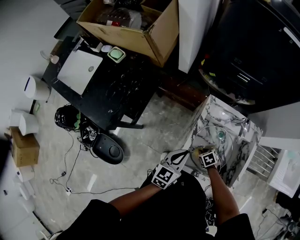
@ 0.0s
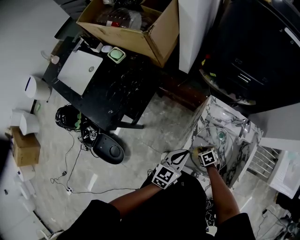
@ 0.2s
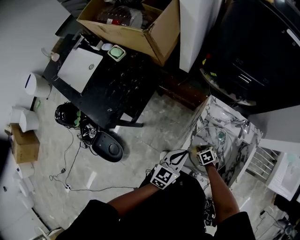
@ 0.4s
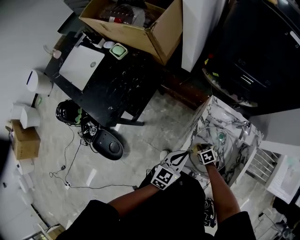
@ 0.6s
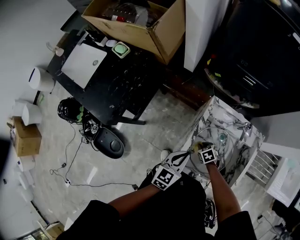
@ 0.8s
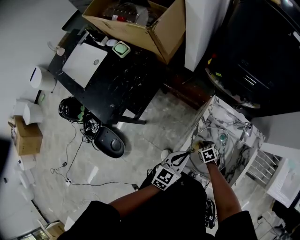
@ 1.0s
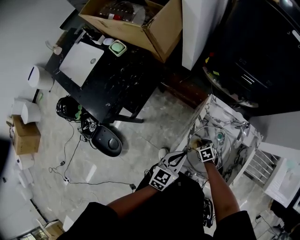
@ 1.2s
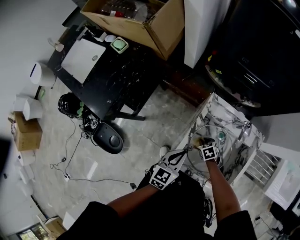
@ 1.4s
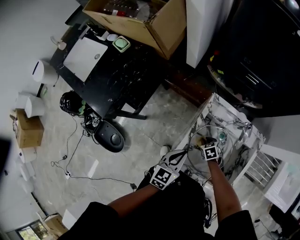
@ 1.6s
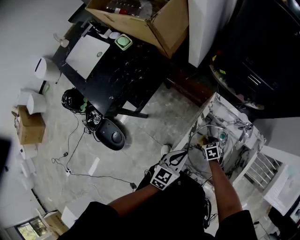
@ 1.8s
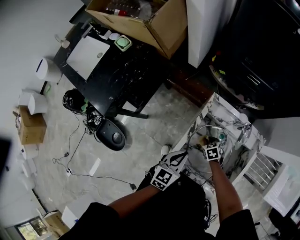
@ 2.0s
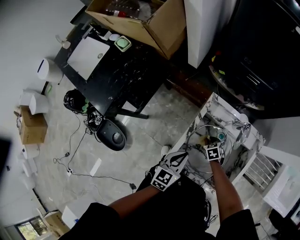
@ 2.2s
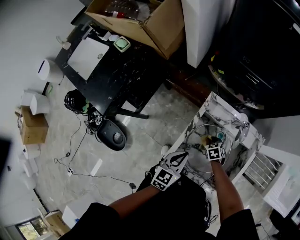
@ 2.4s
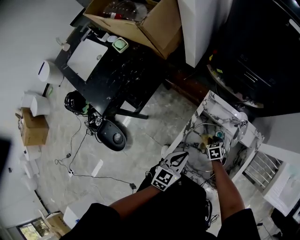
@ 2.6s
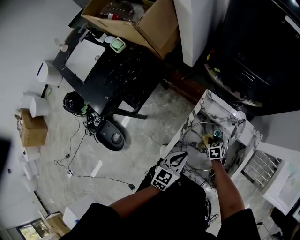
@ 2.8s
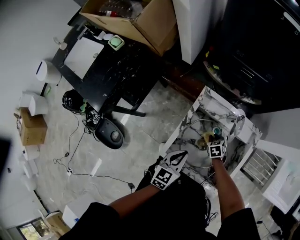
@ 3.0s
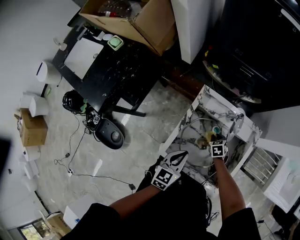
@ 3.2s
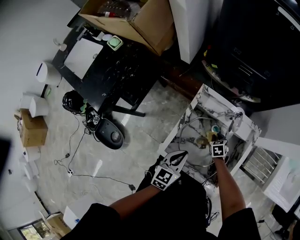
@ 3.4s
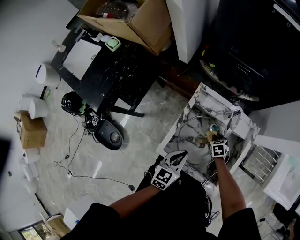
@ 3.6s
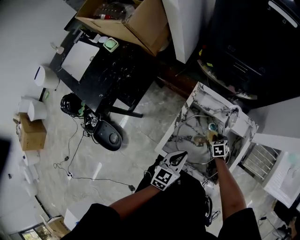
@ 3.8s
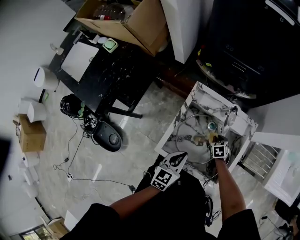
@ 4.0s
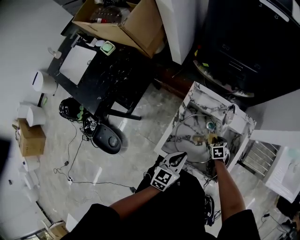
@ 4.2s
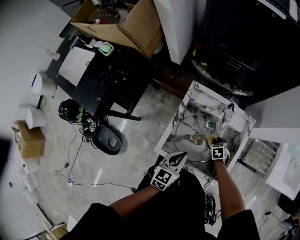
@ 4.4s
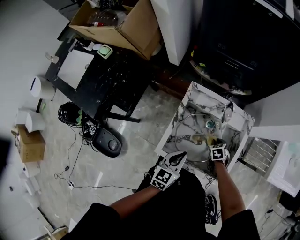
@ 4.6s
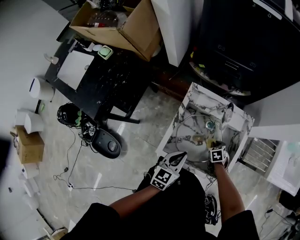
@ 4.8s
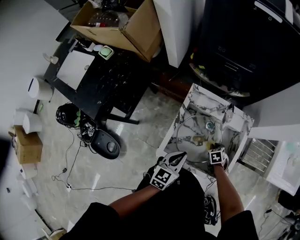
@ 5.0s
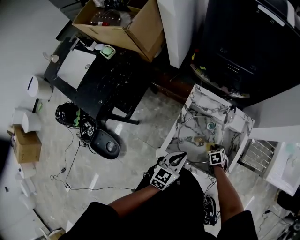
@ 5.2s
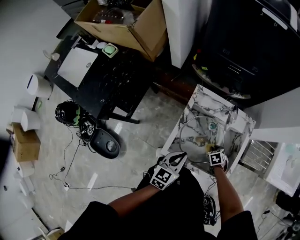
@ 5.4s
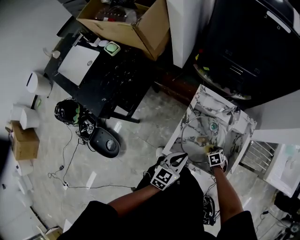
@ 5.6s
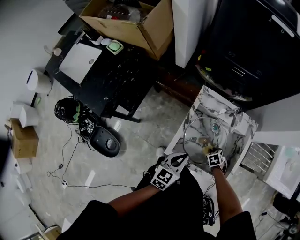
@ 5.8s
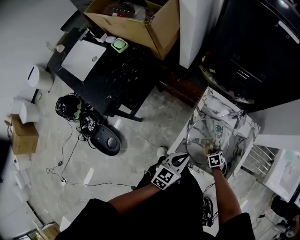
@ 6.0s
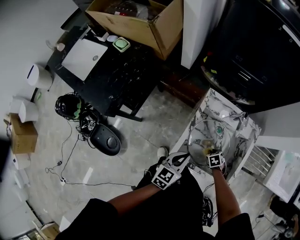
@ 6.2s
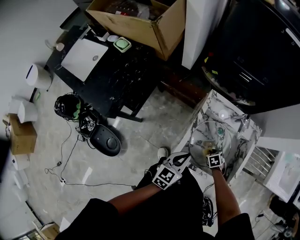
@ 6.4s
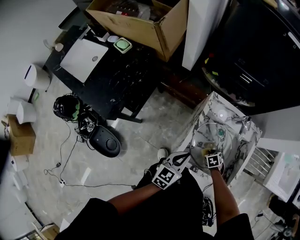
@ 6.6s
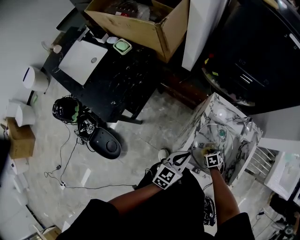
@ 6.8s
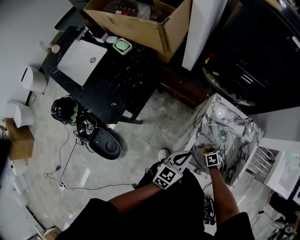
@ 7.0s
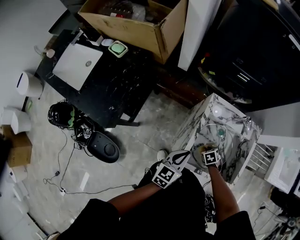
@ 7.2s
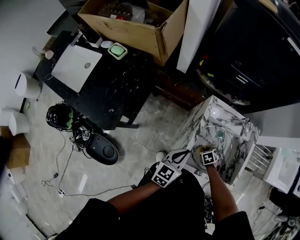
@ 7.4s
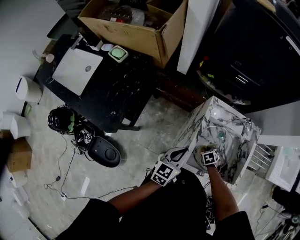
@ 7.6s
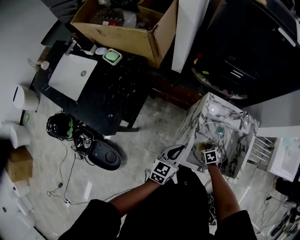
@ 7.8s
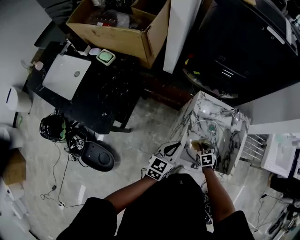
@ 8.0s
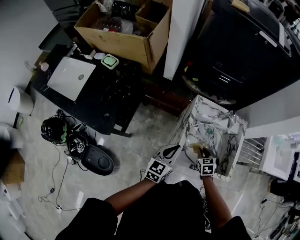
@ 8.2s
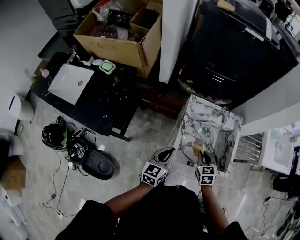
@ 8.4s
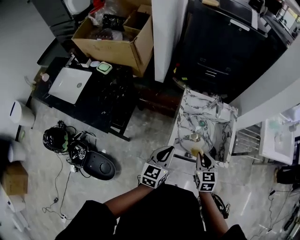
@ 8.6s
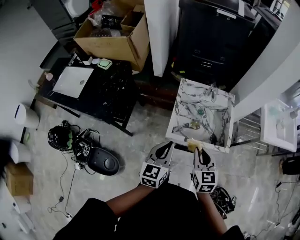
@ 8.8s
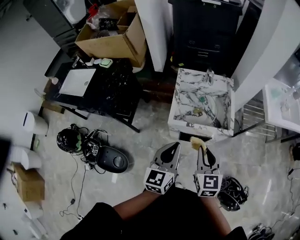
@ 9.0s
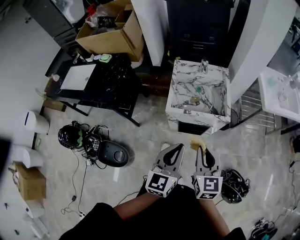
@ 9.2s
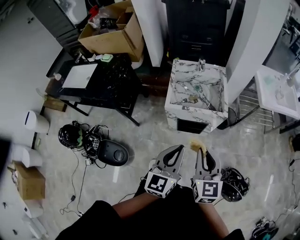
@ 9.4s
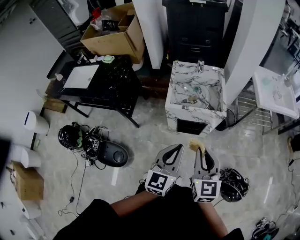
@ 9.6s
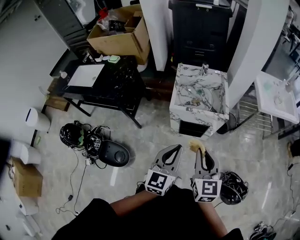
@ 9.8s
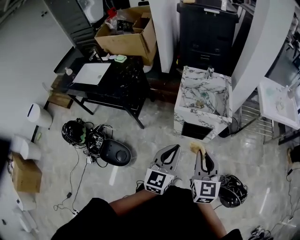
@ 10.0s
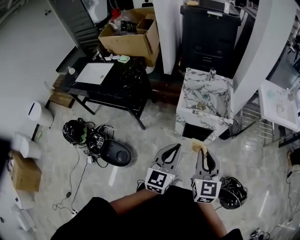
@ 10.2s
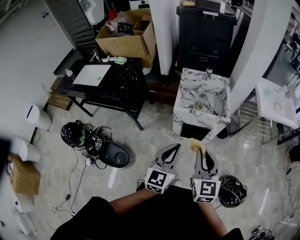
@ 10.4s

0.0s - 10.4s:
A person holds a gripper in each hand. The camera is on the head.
0.0s - 1.4s: The right gripper is displaced forward by approximately 5 cm.
1.4s - 3.0s: The right gripper heads to the right, covering some 10 cm; the left gripper shifts about 5 cm to the right.
3.0s - 4.4s: The right gripper shifts about 10 cm to the right.
4.4s - 6.0s: The left gripper moves about 5 cm; the right gripper ends up some 10 cm from where it was.
6.0s - 7.4s: The right gripper moves roughly 10 cm. Meanwhile the left gripper shifts by about 10 cm.
7.4s - 9.0s: The left gripper changes place by about 30 cm. The right gripper goes some 40 cm upward, and angles its fingers upward, by about 60 degrees.
9.0s - 10.4s: The left gripper shifts about 20 cm backward. Meanwhile the right gripper goes some 20 cm backward and upward.

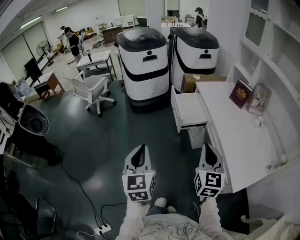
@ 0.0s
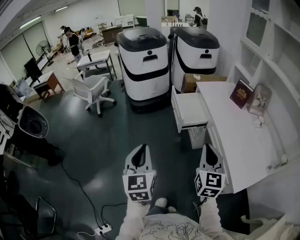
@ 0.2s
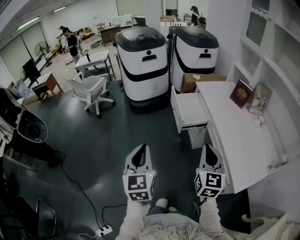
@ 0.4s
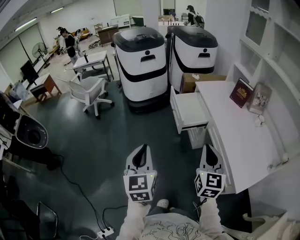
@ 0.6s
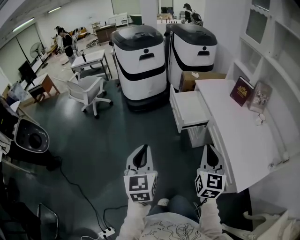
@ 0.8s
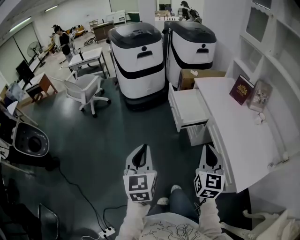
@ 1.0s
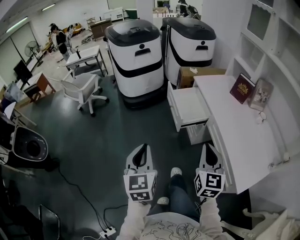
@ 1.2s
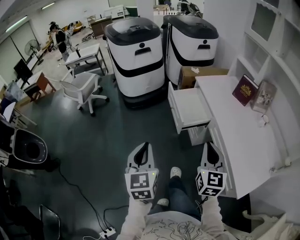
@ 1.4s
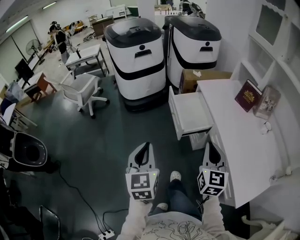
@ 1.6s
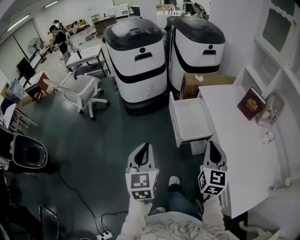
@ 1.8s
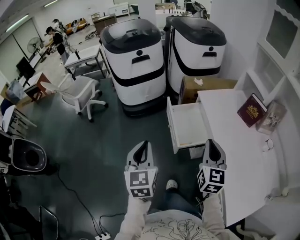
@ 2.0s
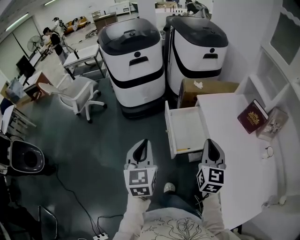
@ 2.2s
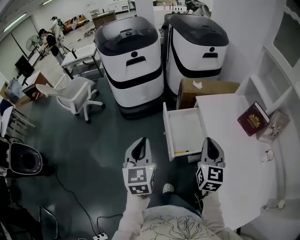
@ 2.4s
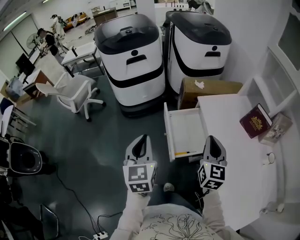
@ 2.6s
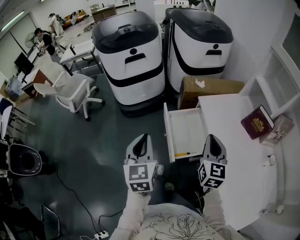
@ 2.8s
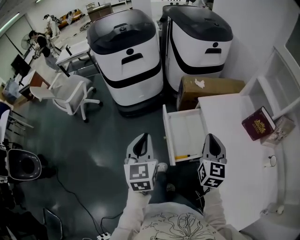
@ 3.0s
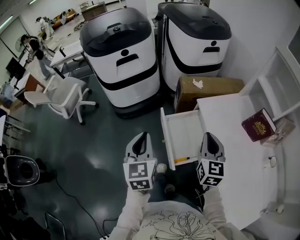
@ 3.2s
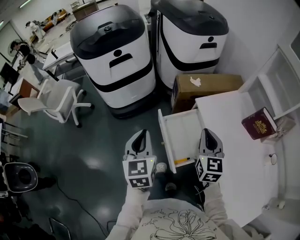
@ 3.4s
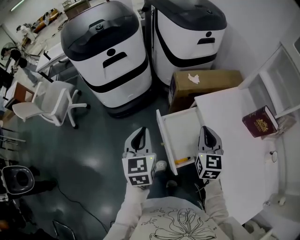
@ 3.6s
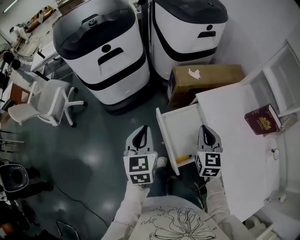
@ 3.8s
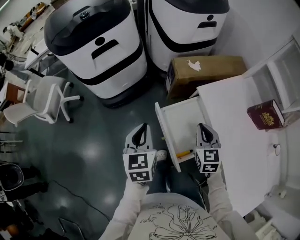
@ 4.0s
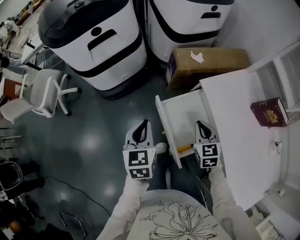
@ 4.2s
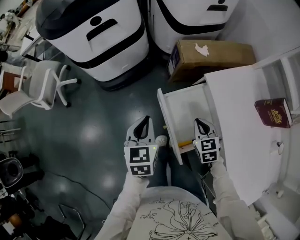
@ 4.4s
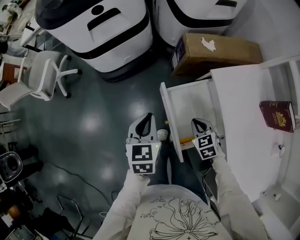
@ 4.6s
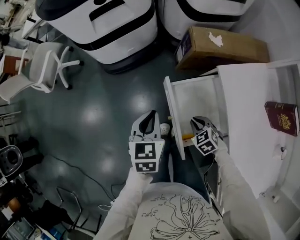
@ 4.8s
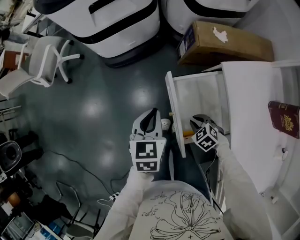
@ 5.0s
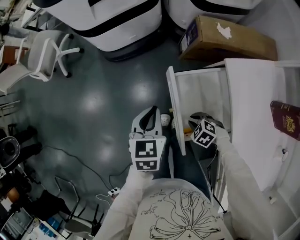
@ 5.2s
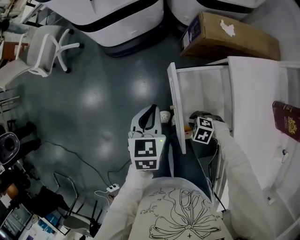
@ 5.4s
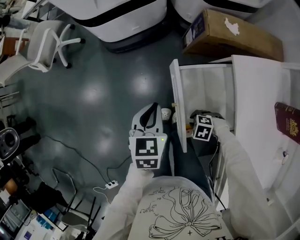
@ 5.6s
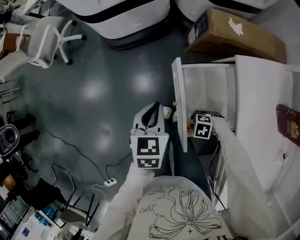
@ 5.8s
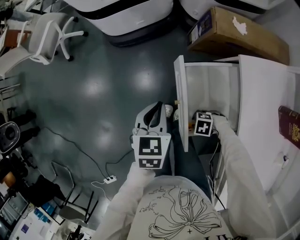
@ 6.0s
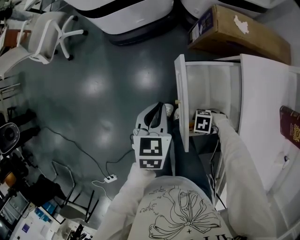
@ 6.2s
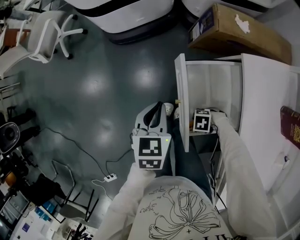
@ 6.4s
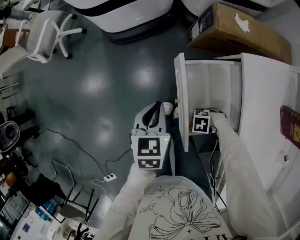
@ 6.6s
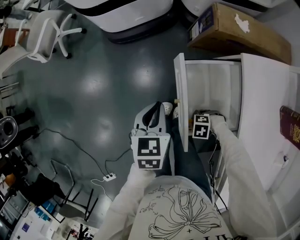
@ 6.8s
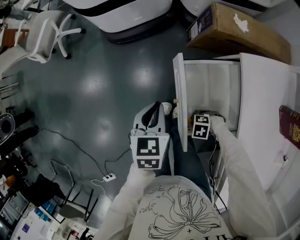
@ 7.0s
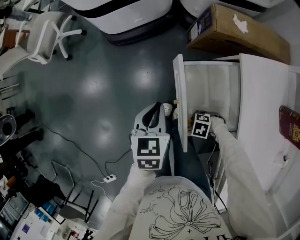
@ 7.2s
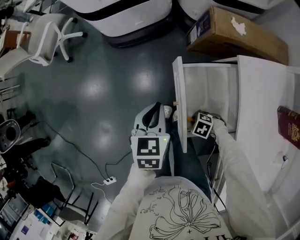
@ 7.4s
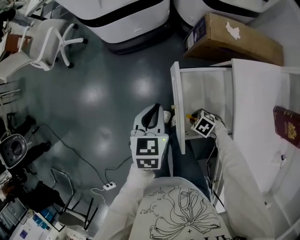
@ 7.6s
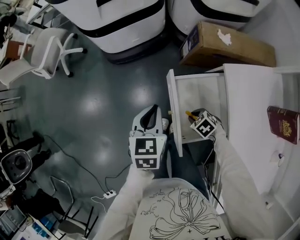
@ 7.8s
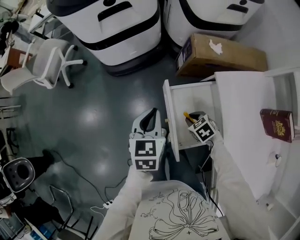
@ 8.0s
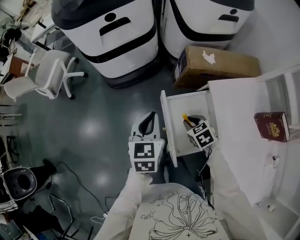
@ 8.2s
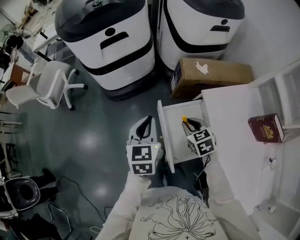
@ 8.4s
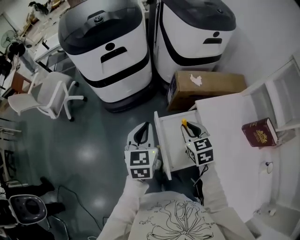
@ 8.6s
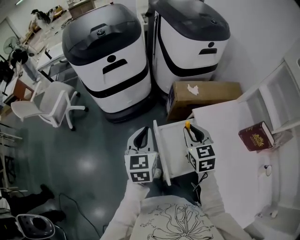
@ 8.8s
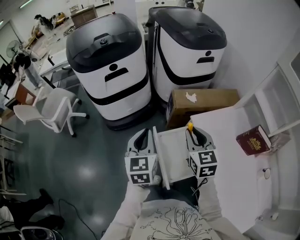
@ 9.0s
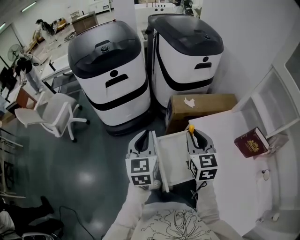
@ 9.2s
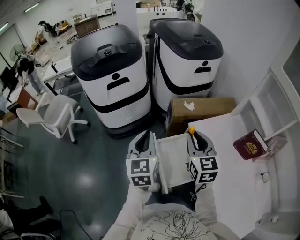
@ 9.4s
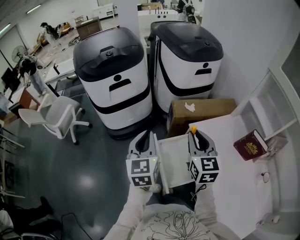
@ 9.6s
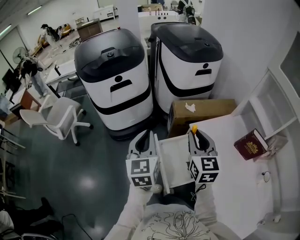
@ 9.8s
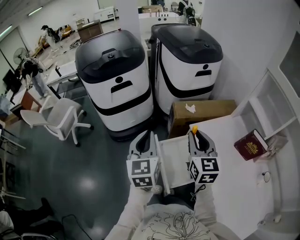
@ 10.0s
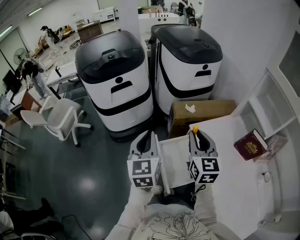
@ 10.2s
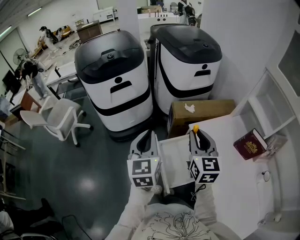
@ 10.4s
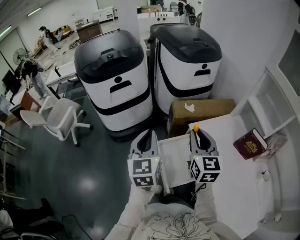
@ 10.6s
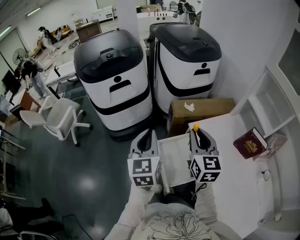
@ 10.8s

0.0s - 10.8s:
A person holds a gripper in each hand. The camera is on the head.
0.0s - 1.6s: Both grippers move forward, some 15 cm.
1.6s - 3.0s: Both grippers travel together forward, approximately 30 cm.
3.0s - 4.6s: The left gripper is displaced downward and forward by approximately 25 cm, and rotates approximately 20 degrees. Meanwhile the right gripper goes some 30 cm downward, and tilts its fingers roughly 40 degrees downward.
4.6s - 6.2s: The right gripper shifts roughly 15 cm downward, rotates some 80 degrees, and opens; the left gripper goes approximately 5 cm downward.
6.2s - 7.8s: The right gripper moves about 15 cm, and changes its angle by approximately 40 degrees. Meanwhile the left gripper goes roughly 5 cm upward.
7.8s - 9.2s: The right gripper goes some 40 cm upward, and points its fingers some 50 degrees further upward. The left gripper shifts some 20 cm upward, and changes its angle by about 20 degrees.
9.2s - 10.8s: The left gripper shifts by about 5 cm; the right gripper moves upward, approximately 5 cm.

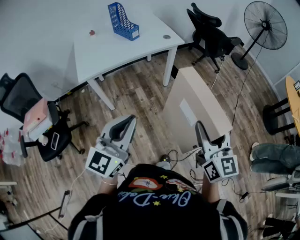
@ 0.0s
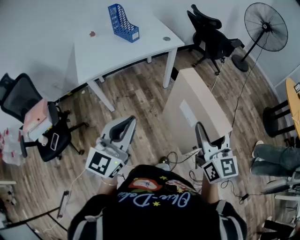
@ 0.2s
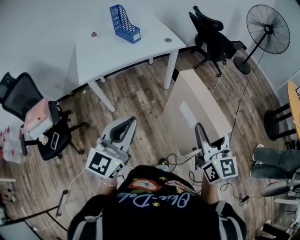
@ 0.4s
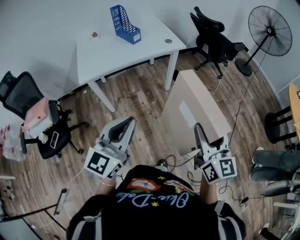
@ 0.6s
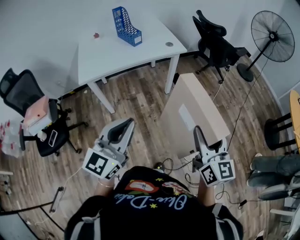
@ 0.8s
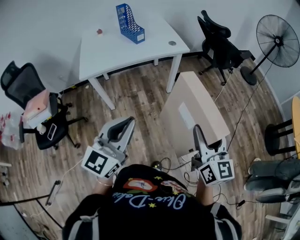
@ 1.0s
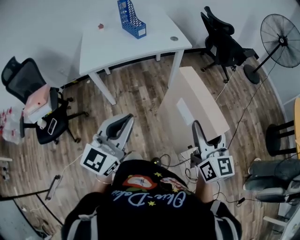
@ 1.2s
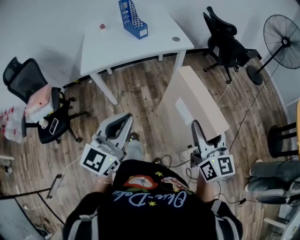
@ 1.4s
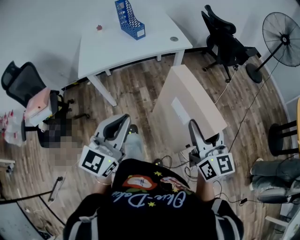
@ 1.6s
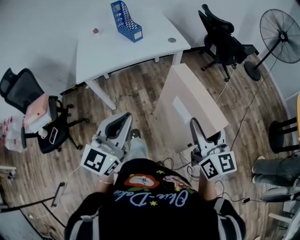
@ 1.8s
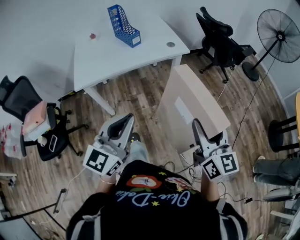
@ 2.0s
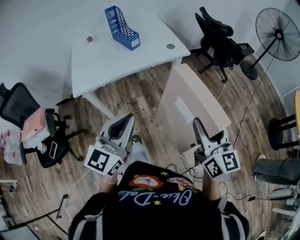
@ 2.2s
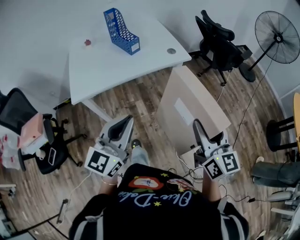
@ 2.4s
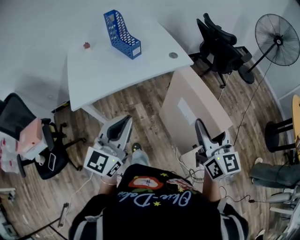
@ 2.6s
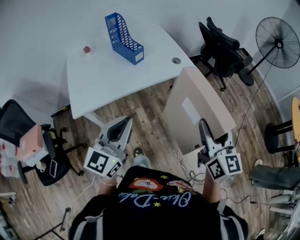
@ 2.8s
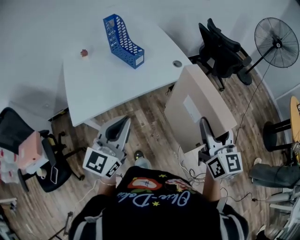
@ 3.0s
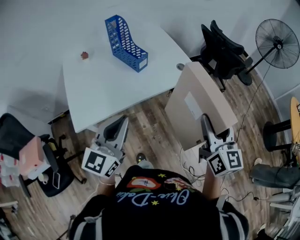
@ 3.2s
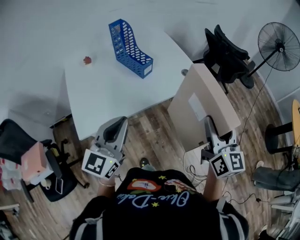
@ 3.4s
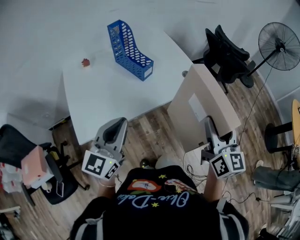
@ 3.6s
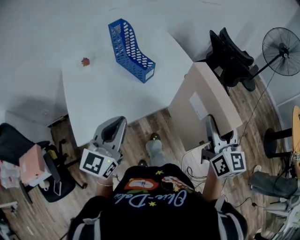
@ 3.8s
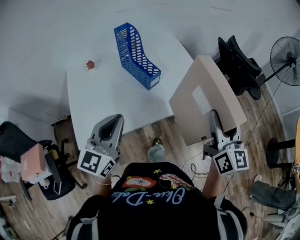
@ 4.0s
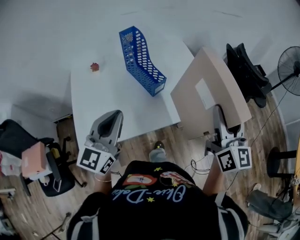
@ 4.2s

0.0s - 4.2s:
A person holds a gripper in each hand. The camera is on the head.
0.0s - 1.4s: The left gripper travels to the right by some 5 cm; the right gripper is displaced forward and to the right by about 10 cm.
1.4s - 2.8s: The grippers both shift forward and to the left by some 25 cm.
2.8s - 4.2s: Both grippers move forward and to the left, approximately 30 cm.
